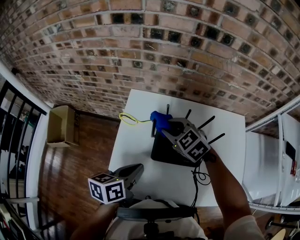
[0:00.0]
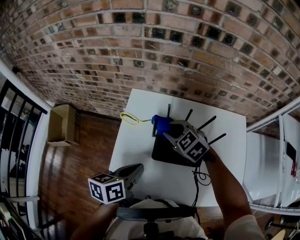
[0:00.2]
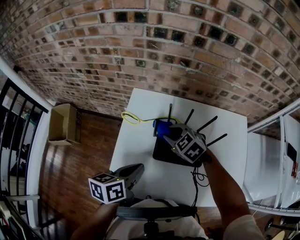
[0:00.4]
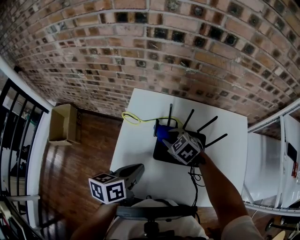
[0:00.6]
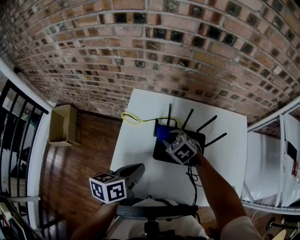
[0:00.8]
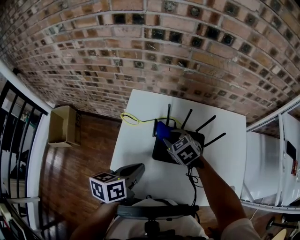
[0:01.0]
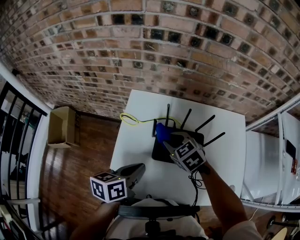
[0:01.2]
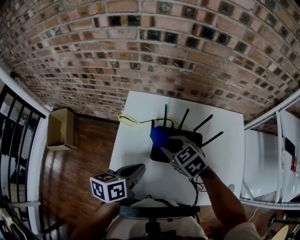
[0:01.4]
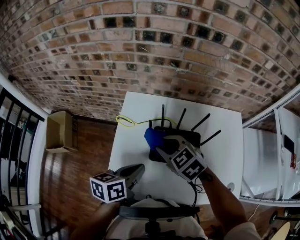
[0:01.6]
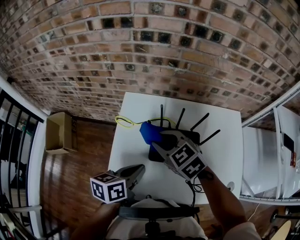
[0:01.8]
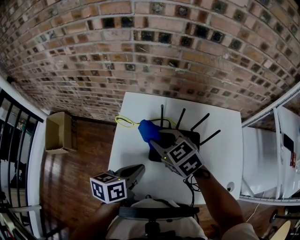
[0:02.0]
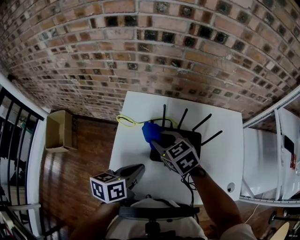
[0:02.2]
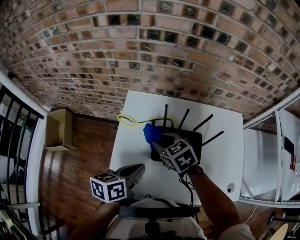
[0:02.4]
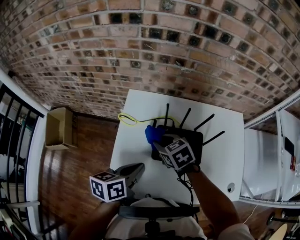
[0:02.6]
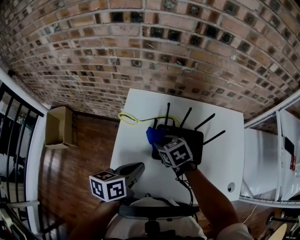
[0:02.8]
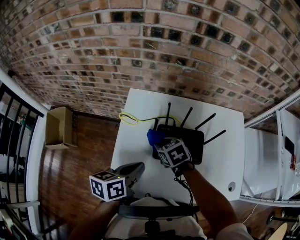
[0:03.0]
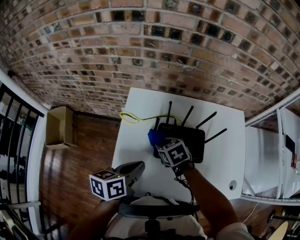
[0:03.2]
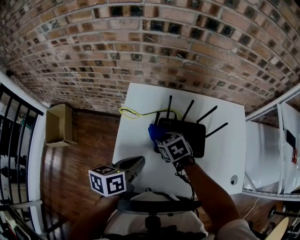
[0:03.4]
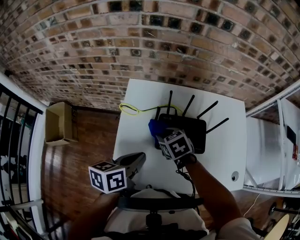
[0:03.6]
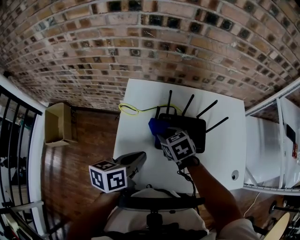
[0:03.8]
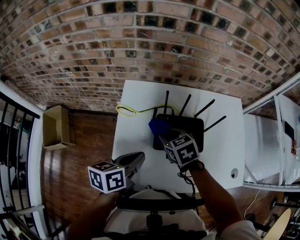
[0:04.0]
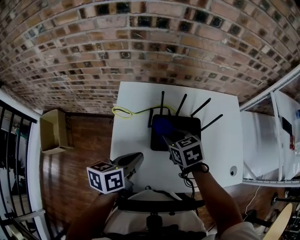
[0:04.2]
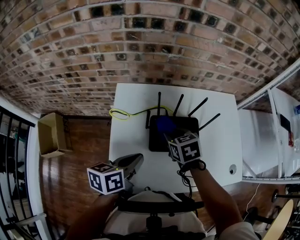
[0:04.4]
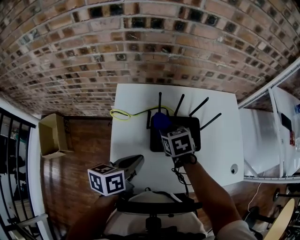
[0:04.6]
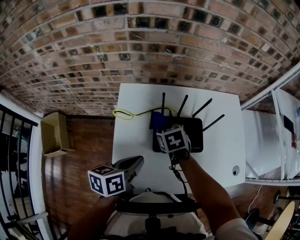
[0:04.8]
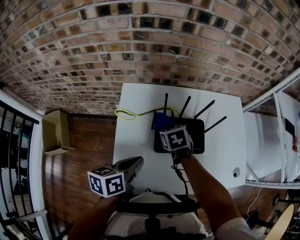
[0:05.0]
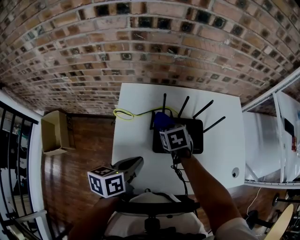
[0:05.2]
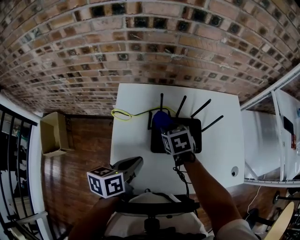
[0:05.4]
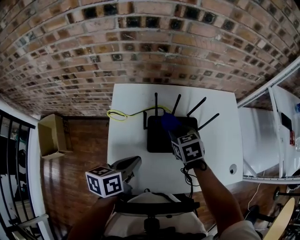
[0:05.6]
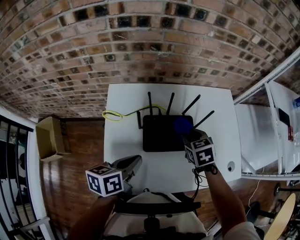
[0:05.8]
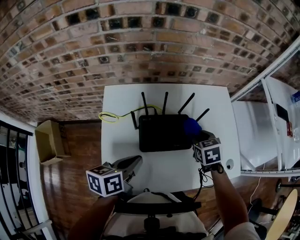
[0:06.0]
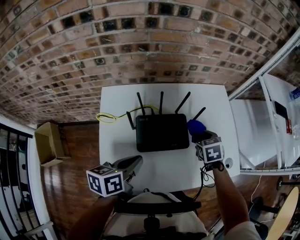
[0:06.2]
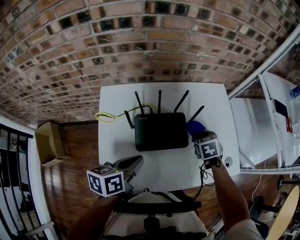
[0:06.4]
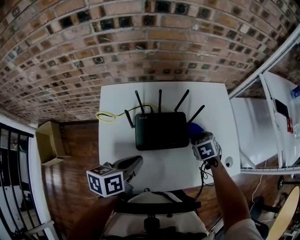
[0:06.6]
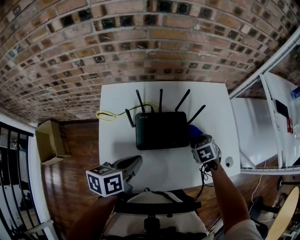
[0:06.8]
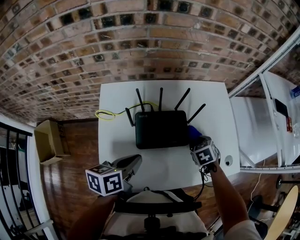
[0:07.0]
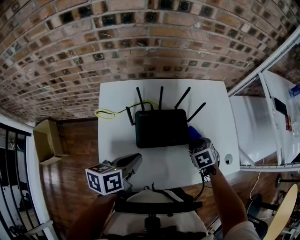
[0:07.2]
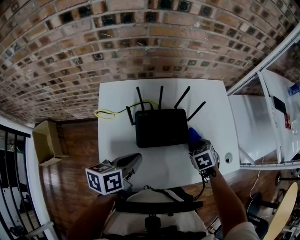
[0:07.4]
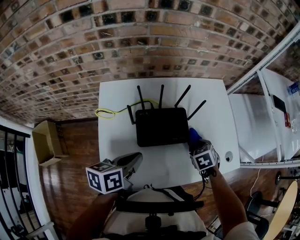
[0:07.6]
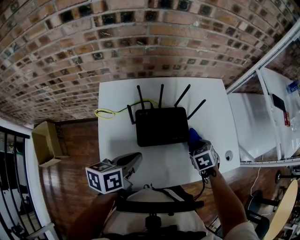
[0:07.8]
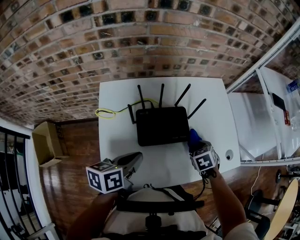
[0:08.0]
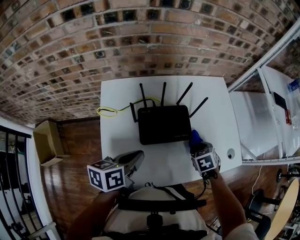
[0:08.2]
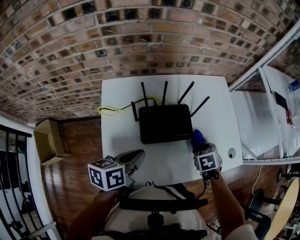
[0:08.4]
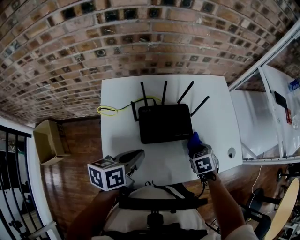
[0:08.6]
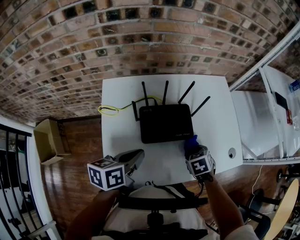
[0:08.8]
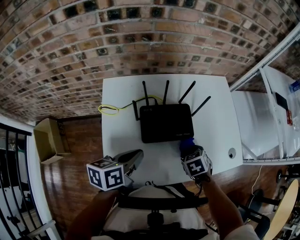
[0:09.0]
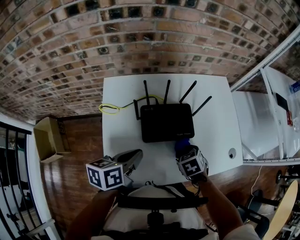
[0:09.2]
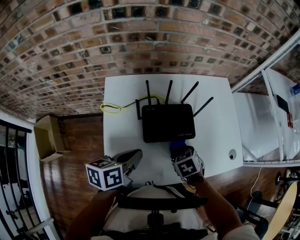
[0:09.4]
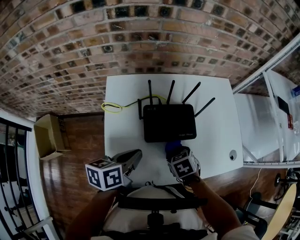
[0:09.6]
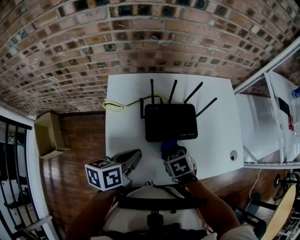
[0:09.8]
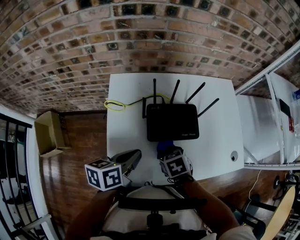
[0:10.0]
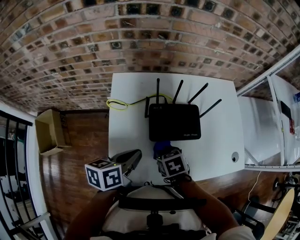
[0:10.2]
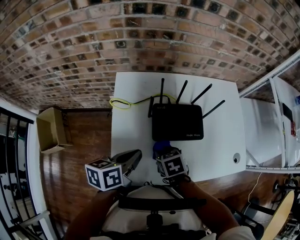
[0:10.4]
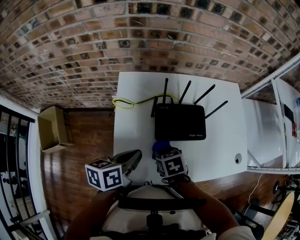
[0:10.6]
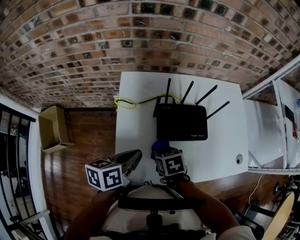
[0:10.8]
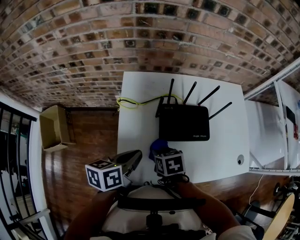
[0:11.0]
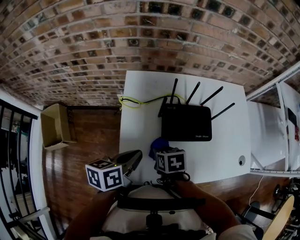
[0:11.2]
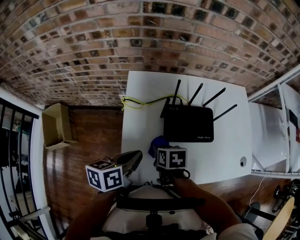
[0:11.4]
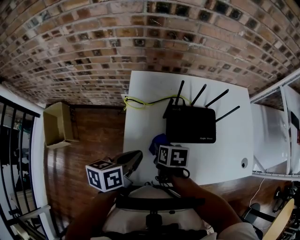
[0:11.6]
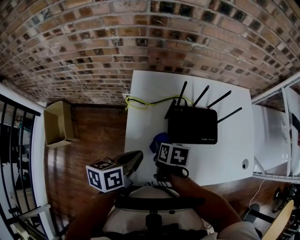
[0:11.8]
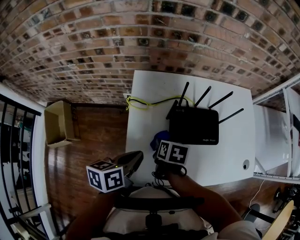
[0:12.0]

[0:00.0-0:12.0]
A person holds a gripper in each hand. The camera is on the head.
0:00.0 to 0:01.6: The right gripper goes approximately 5 cm backward, and reaches some 10 cm downward, then returns.
0:01.6 to 0:03.0: The right gripper travels downward by some 10 cm, and turns by some 30 degrees.
0:03.0 to 0:04.4: The right gripper is displaced to the right by roughly 5 cm.
0:04.4 to 0:06.0: The right gripper is displaced to the right by approximately 20 cm.
0:06.0 to 0:07.6: The right gripper shifts some 10 cm downward, backward and to the right.
0:07.6 to 0:09.0: The right gripper shifts some 5 cm backward.
0:09.0 to 0:10.4: The left gripper shifts roughly 5 cm to the left, while the right gripper heads to the left, covering about 20 cm.
0:10.4 to 0:12.0: Both grippers travel together to the left, some 10 cm. The right gripper rotates about 30 degrees.

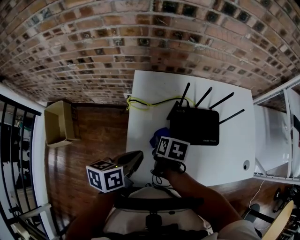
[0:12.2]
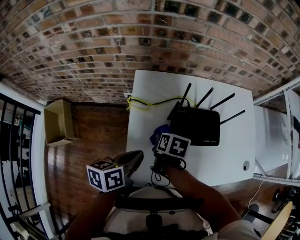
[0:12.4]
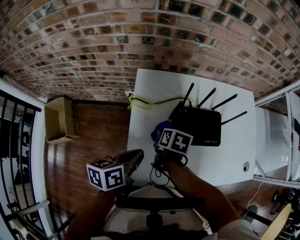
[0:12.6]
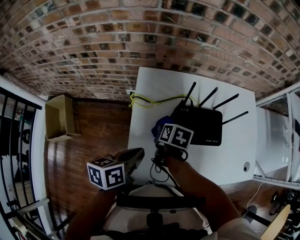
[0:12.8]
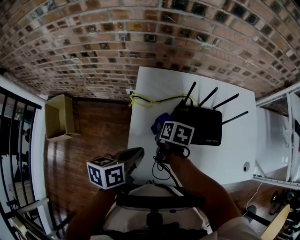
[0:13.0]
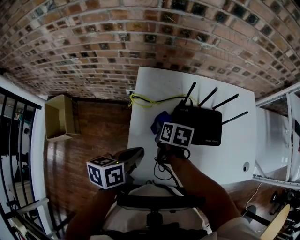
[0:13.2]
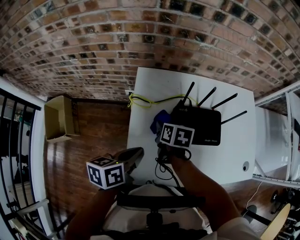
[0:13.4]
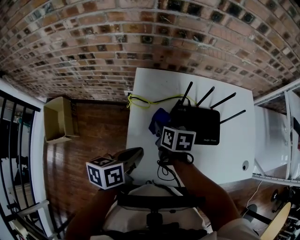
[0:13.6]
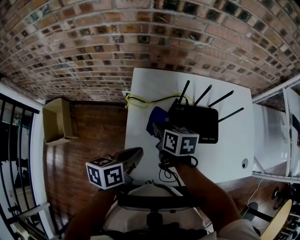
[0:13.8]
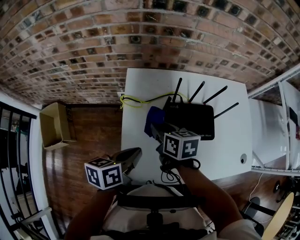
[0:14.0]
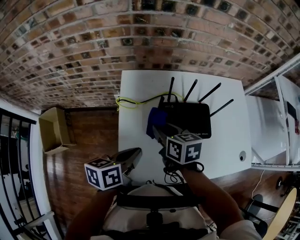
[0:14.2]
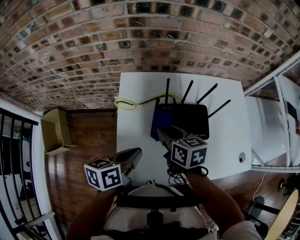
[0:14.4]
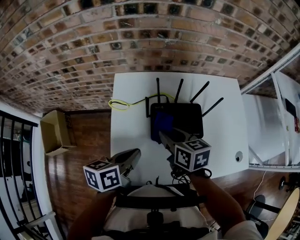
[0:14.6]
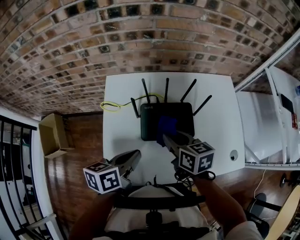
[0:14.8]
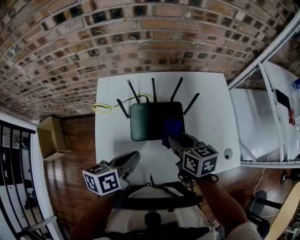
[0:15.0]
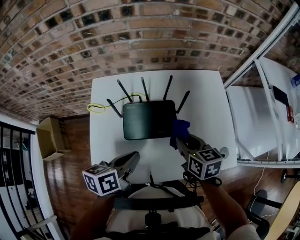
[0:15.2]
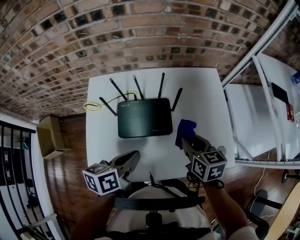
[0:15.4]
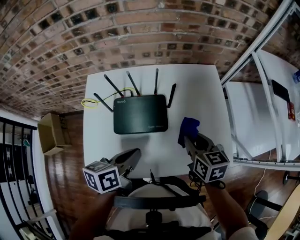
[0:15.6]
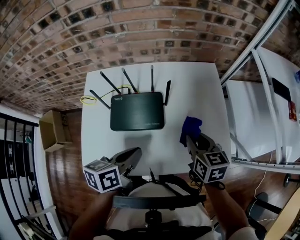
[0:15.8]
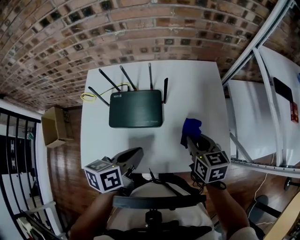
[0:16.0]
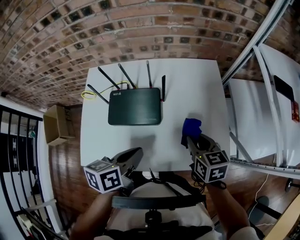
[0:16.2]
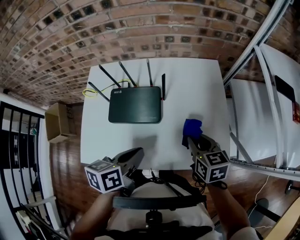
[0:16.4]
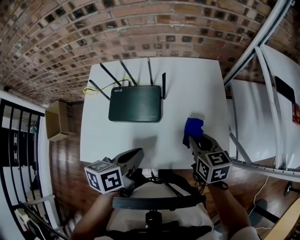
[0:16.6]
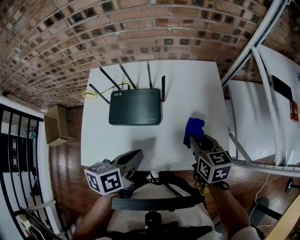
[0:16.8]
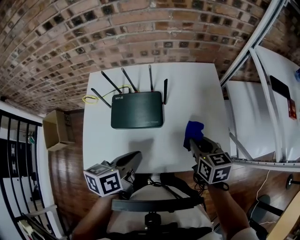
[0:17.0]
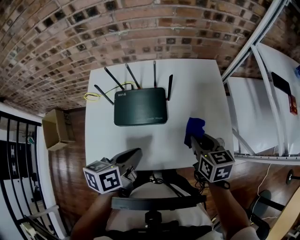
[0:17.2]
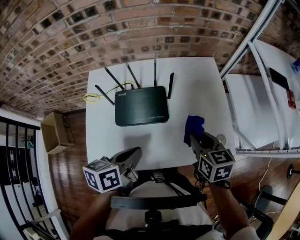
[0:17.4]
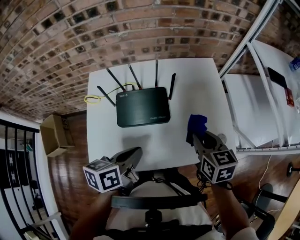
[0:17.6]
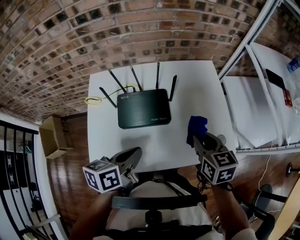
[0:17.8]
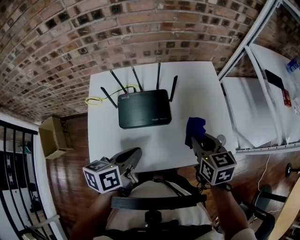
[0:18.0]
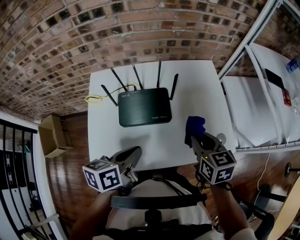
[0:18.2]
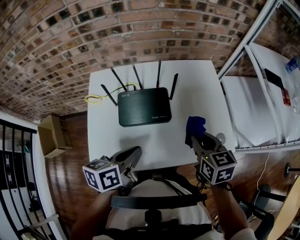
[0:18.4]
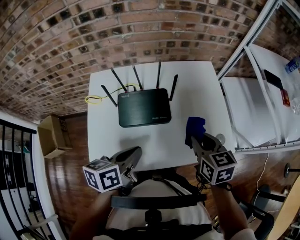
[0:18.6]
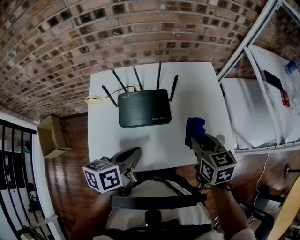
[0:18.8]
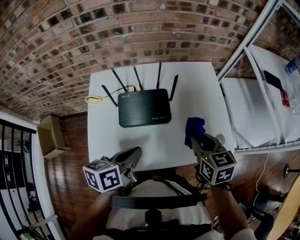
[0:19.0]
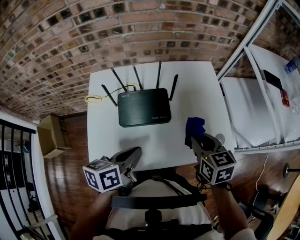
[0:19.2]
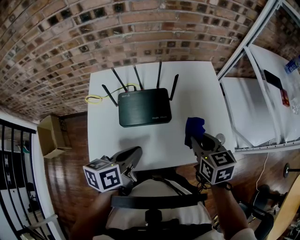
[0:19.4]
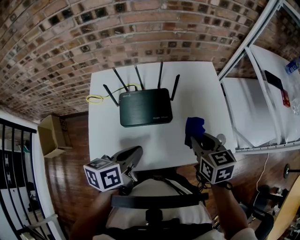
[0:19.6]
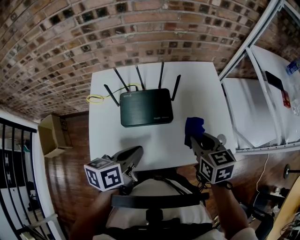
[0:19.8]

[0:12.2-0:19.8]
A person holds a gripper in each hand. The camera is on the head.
0:12.2 to 0:13.8: The right gripper heads upward, covering approximately 5 cm, and turns by approximately 20 degrees.
0:13.8 to 0:15.2: The right gripper shifts about 35 cm to the right; the left gripper shifts approximately 25 cm to the right.
0:15.2 to 0:16.8: The two grippers go approximately 15 cm to the right.
0:16.8 to 0:18.2: The right gripper heads to the left, backward and upward, covering about 10 cm, while the left gripper is displaced to the left by roughly 10 cm.
0:18.2 to 0:19.8: Both grippers stay put.

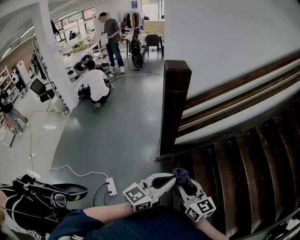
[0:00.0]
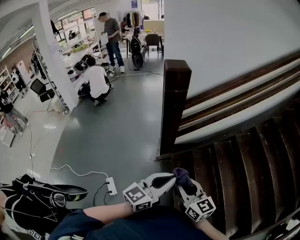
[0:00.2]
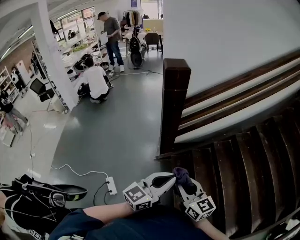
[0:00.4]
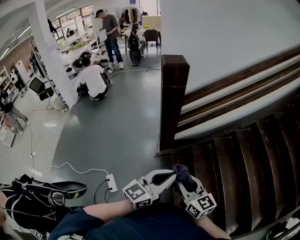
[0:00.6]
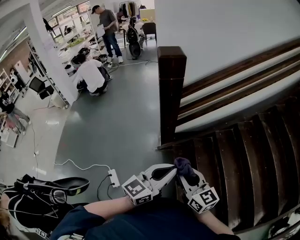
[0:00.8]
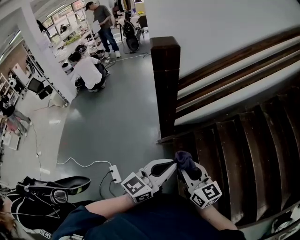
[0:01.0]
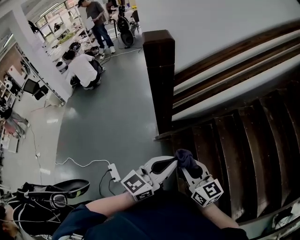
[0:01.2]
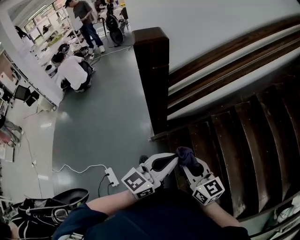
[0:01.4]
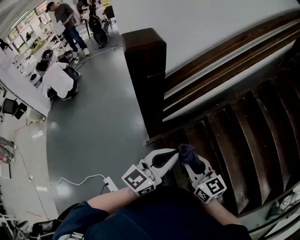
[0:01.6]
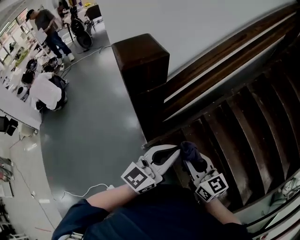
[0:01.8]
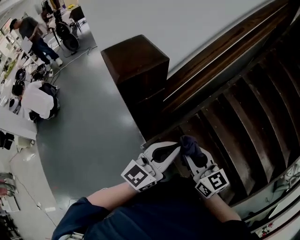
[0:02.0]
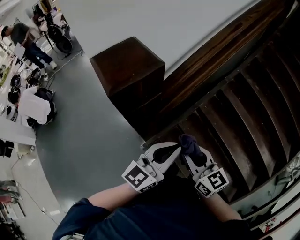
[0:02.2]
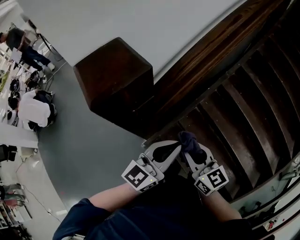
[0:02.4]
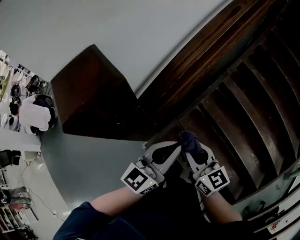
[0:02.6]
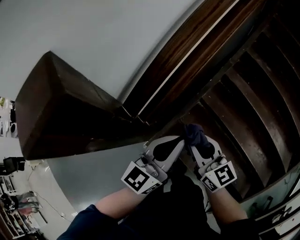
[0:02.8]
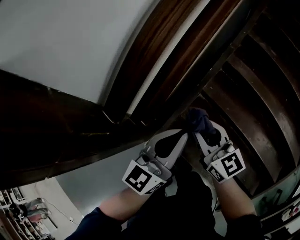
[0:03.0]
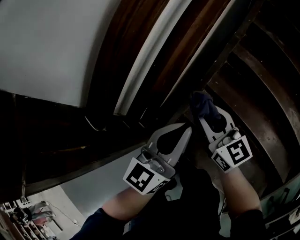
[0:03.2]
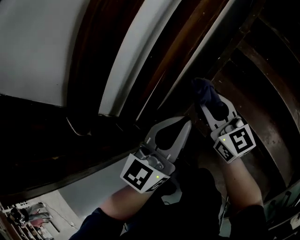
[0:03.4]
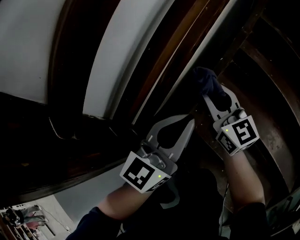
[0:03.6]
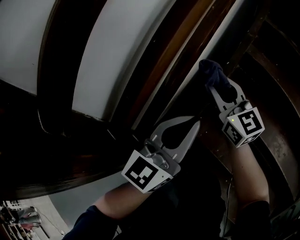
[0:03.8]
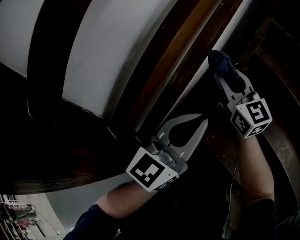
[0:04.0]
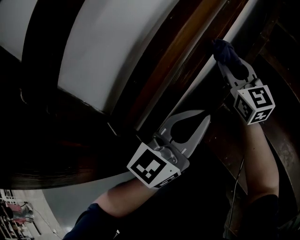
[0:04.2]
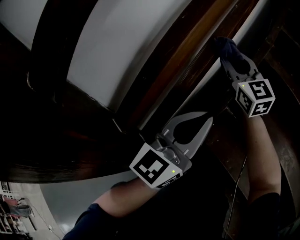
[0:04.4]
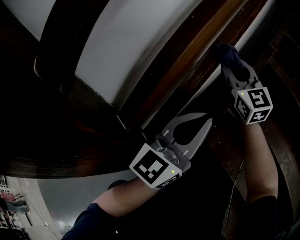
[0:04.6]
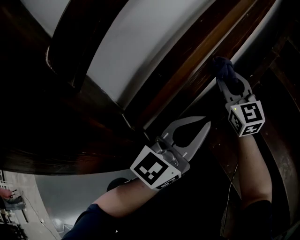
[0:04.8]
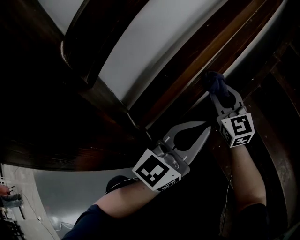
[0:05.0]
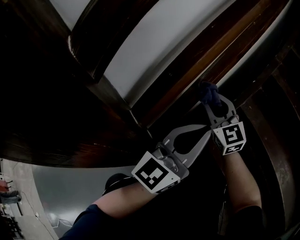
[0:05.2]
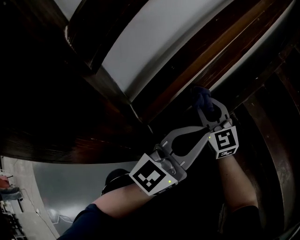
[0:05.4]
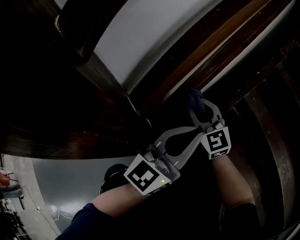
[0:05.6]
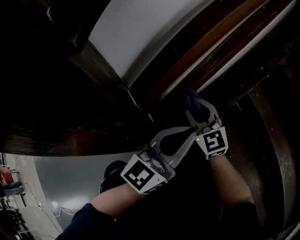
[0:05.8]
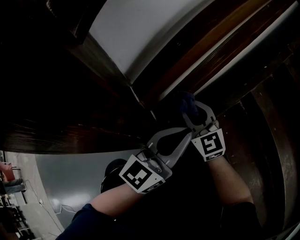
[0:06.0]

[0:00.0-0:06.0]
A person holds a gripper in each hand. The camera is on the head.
0:00.0 to 0:01.6: The grippers both shift forward by approximately 20 cm.
0:01.6 to 0:03.0: Both grippers move forward and downward, some 35 cm. The right gripper changes its angle by roughly 20 degrees.
0:03.0 to 0:04.4: The right gripper is displaced forward and downward by about 35 cm, and rotates some 30 degrees; the left gripper goes about 25 cm downward.
0:04.4 to 0:06.0: The left gripper shifts roughly 15 cm to the left, downward and backward; the right gripper is displaced to the left, backward and downward by approximately 30 cm, and swivels roughly 20 degrees.
